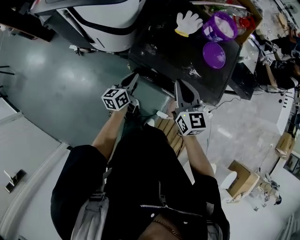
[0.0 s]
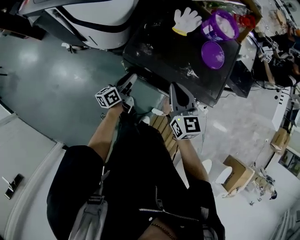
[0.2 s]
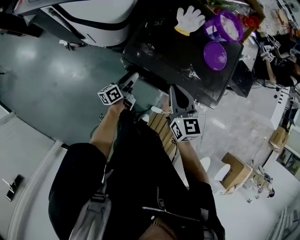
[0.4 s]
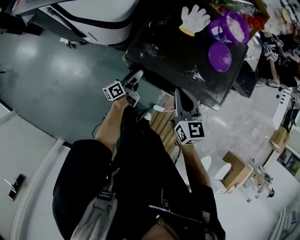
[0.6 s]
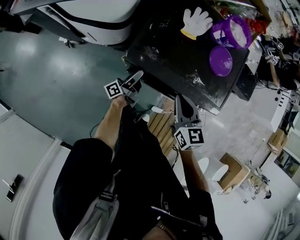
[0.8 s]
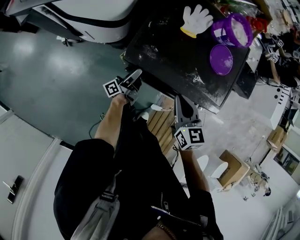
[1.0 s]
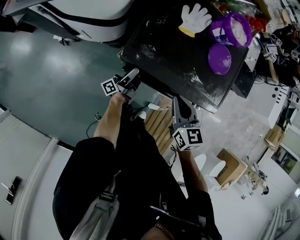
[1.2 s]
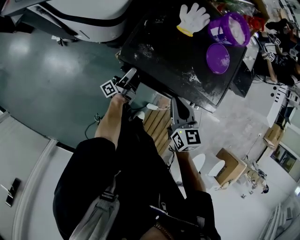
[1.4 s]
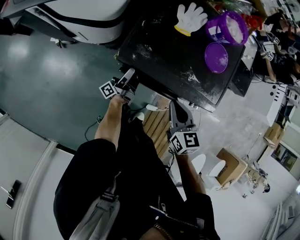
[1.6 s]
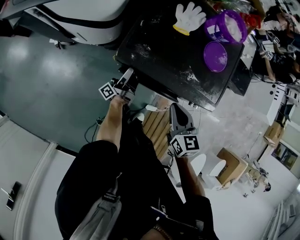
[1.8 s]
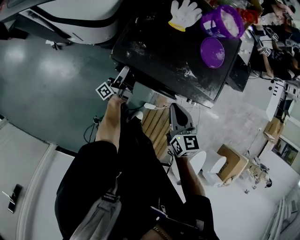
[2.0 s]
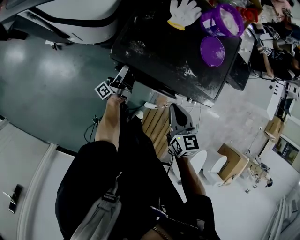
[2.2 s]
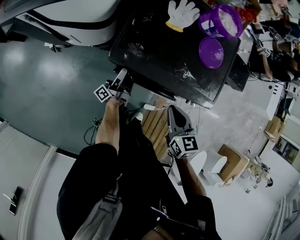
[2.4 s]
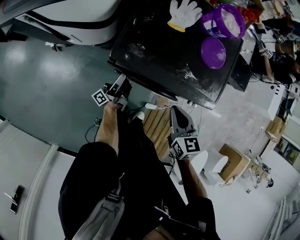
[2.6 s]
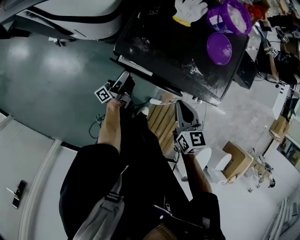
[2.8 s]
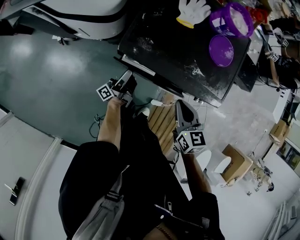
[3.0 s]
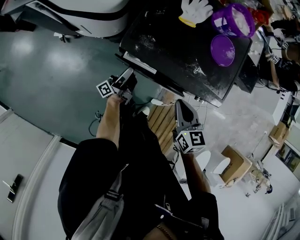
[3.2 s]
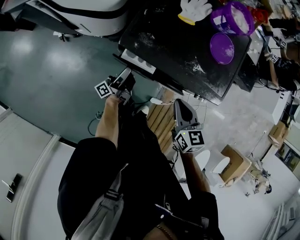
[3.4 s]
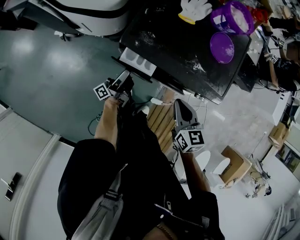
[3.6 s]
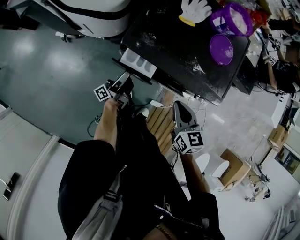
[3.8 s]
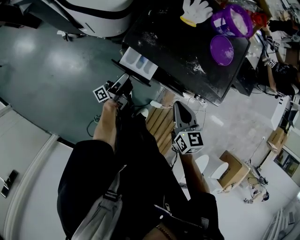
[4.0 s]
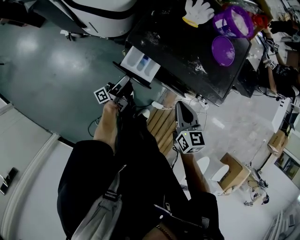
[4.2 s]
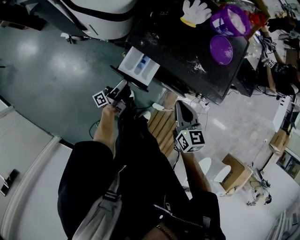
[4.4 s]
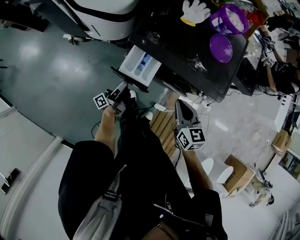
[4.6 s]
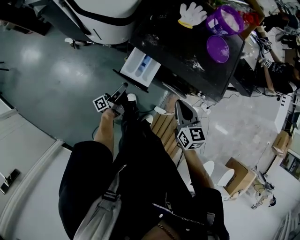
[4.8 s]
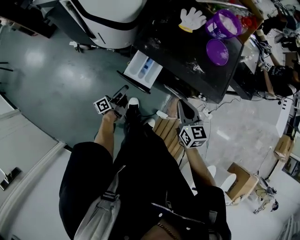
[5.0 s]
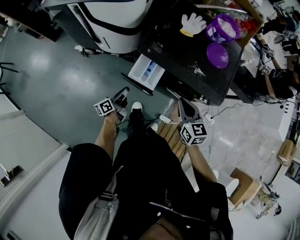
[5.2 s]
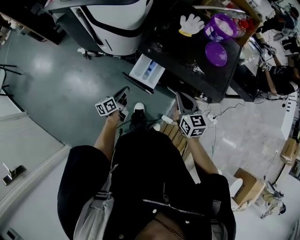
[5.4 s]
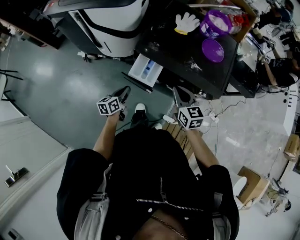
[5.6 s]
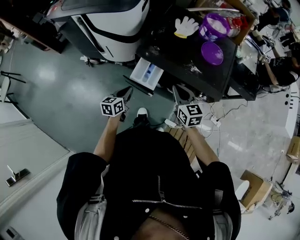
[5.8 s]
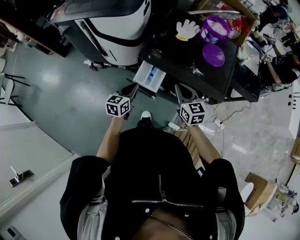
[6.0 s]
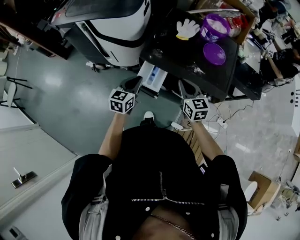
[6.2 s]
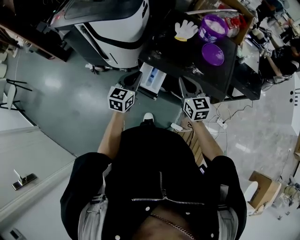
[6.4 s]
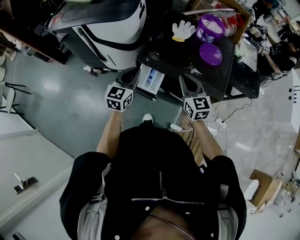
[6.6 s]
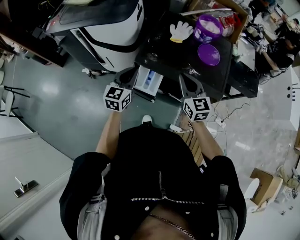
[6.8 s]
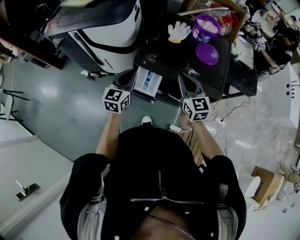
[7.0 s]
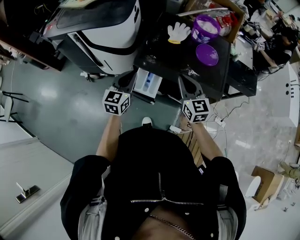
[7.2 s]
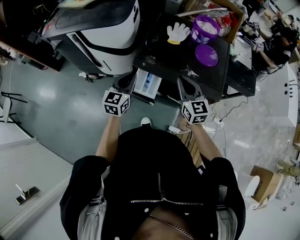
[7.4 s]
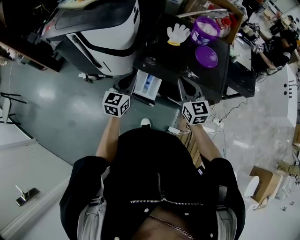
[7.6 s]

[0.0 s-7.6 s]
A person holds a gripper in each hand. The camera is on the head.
0.0 to 1.6 s: The right gripper is displaced downward by approximately 10 cm; the left gripper heads downward and forward, covering approximately 10 cm, tips its fingers upward by approximately 40 degrees, and opens.
1.6 to 3.0 s: The grippers move only a little.
3.0 to 4.6 s: The left gripper goes some 10 cm backward, while the right gripper is displaced backward by some 5 cm.
4.6 to 6.0 s: The right gripper goes roughly 5 cm forward. Meanwhile the left gripper is displaced upward by approximately 15 cm, rotates around the line of its fingers by roughly 60 degrees, clockwise from behind, and closes up.
6.0 to 7.6 s: The right gripper goes roughly 5 cm upward; the left gripper is displaced upward and forward by approximately 10 cm.

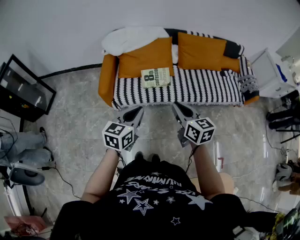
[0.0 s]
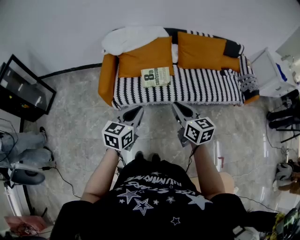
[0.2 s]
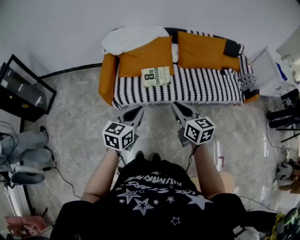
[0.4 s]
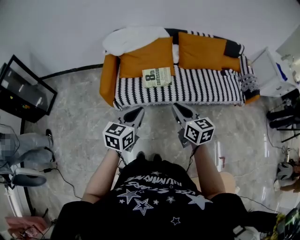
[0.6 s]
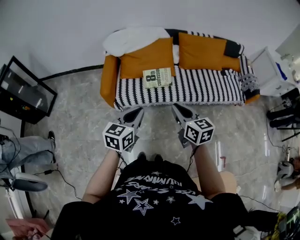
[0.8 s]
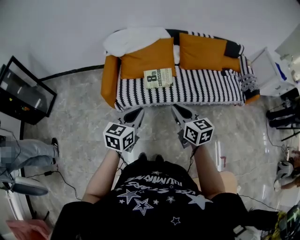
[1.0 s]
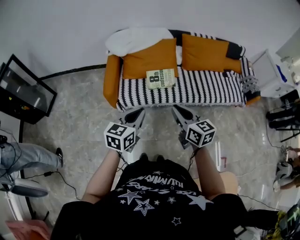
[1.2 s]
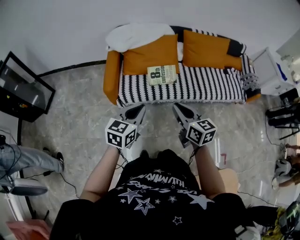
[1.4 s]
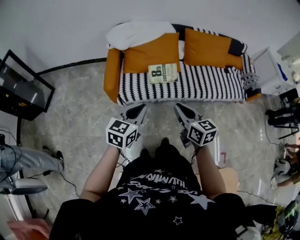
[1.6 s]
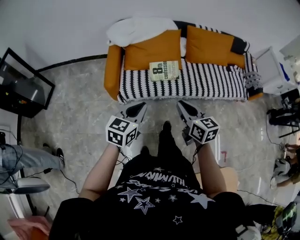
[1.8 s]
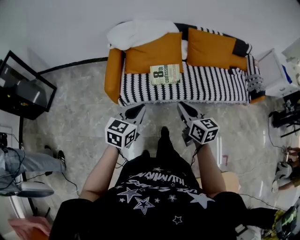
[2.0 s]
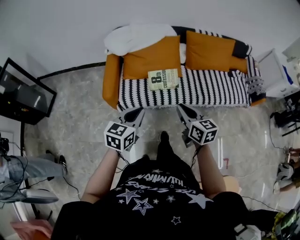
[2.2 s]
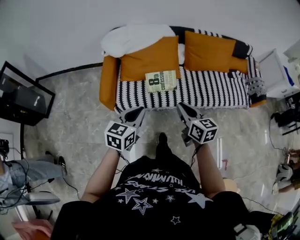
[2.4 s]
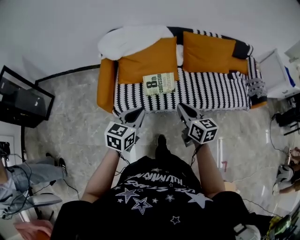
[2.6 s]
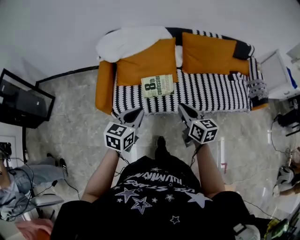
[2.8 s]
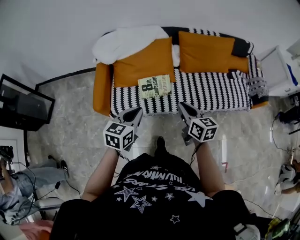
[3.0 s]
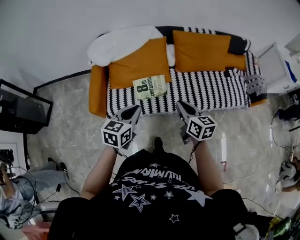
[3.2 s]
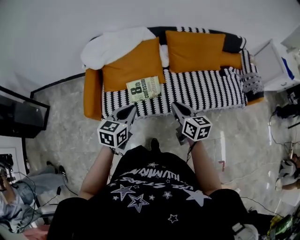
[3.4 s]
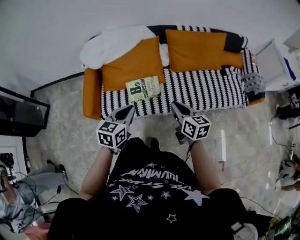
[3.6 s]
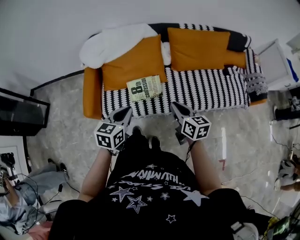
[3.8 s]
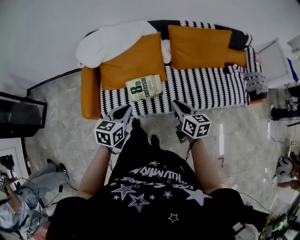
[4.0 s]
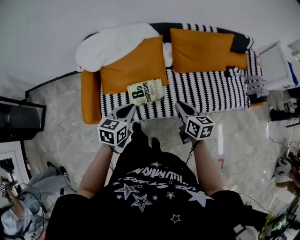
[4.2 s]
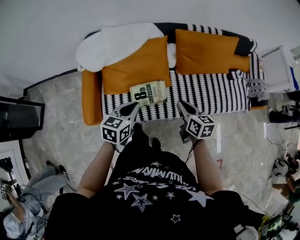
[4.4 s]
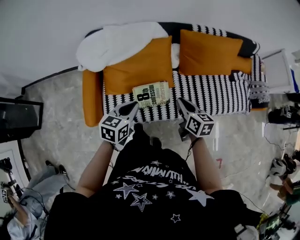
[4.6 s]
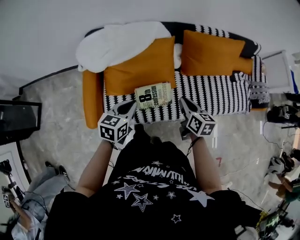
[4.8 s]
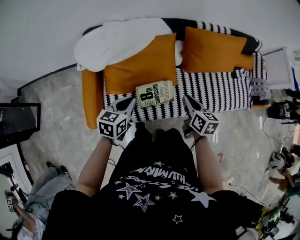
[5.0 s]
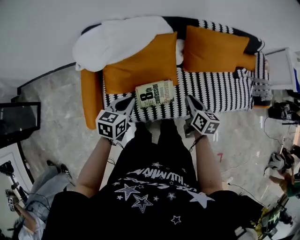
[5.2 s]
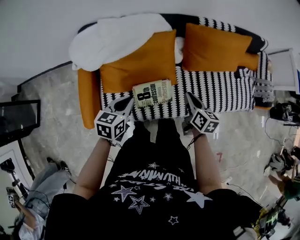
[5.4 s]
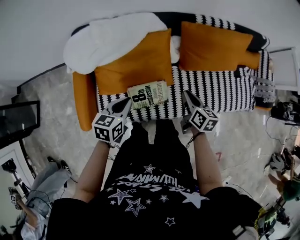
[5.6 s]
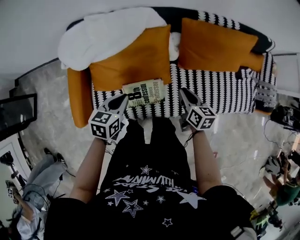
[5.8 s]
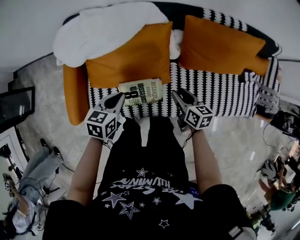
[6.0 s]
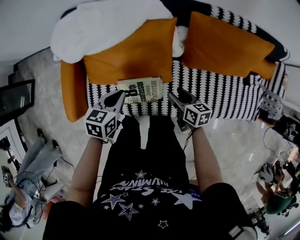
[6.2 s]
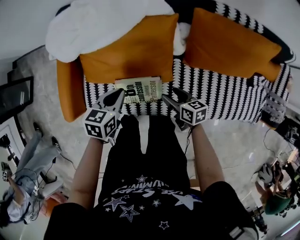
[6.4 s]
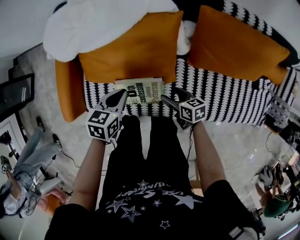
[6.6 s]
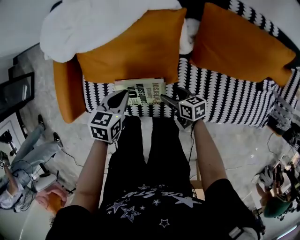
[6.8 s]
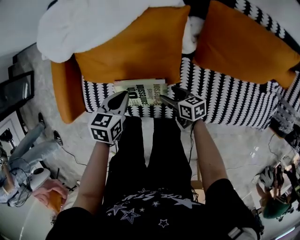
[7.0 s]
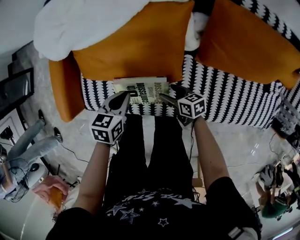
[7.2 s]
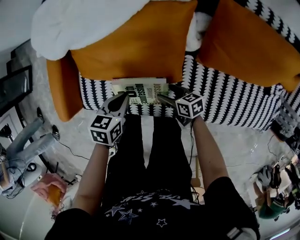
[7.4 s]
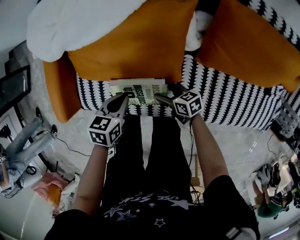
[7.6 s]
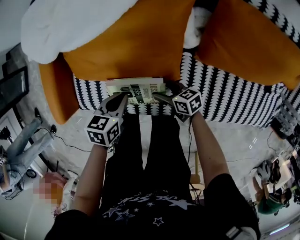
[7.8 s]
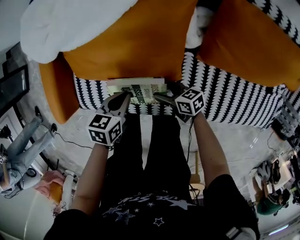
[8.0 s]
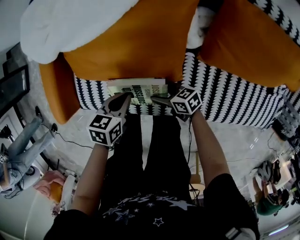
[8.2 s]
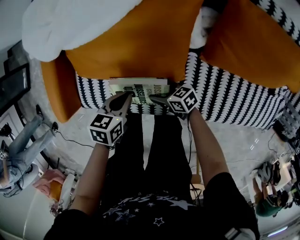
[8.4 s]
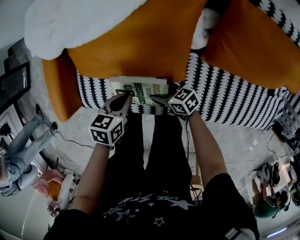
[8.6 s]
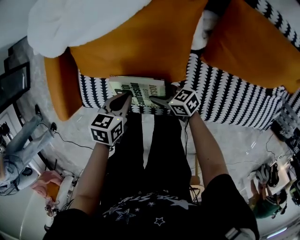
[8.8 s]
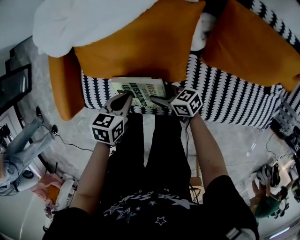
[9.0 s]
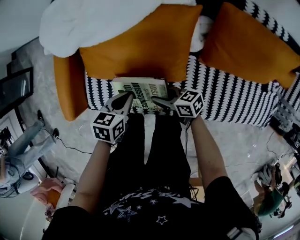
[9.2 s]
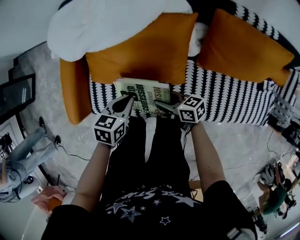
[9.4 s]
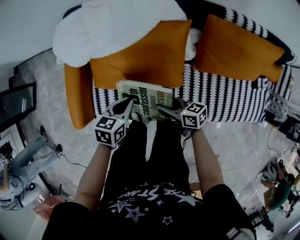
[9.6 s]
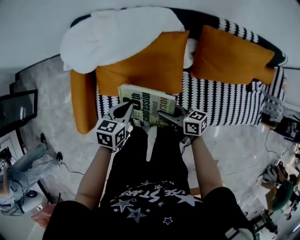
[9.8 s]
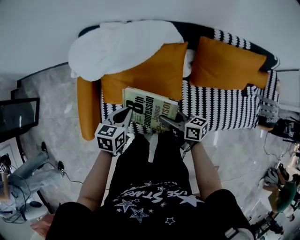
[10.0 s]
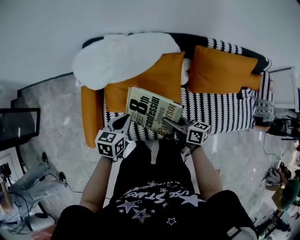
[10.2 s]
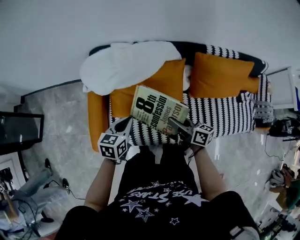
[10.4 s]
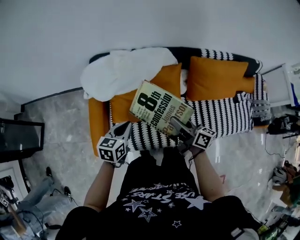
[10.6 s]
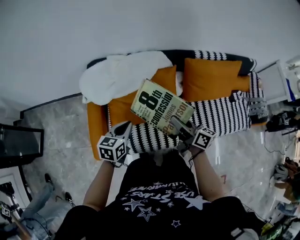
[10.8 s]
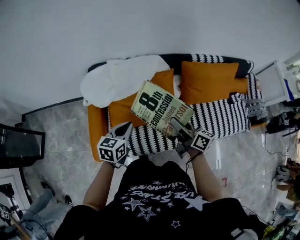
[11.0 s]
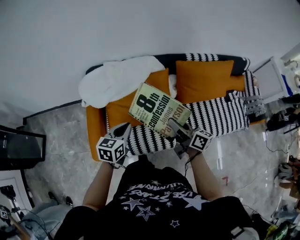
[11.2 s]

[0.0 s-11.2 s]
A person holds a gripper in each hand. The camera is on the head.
0.0 to 1.6 s: Both grippers move to the left, approximately 10 cm.
1.6 to 3.2 s: The grippers both shift forward and to the right by some 25 cm.
3.2 to 4.8 s: The right gripper shifts some 20 cm forward. Meanwhile the left gripper is displaced forward and to the left by approximately 20 cm.
4.8 to 6.4 s: The left gripper moves downward, roughly 15 cm. The right gripper shifts about 20 cm downward, changes its angle by about 30 degrees, and opens its fingers.
6.4 to 8.0 s: The left gripper moves downward, roughly 15 cm. The right gripper heads downward and to the left, covering some 15 cm, and turns by about 20 degrees.
8.0 to 9.6 s: The right gripper heads upward, covering some 15 cm, and closes up; the left gripper moves upward, approximately 10 cm.
9.6 to 11.2 s: The grippers both shift upward by roughly 20 cm. The left gripper changes its angle by roughly 20 degrees. The right gripper swivels approximately 40 degrees.

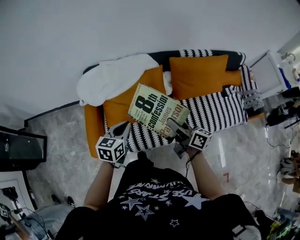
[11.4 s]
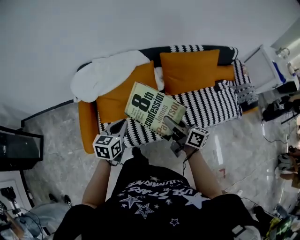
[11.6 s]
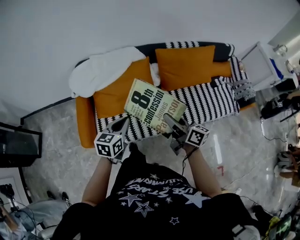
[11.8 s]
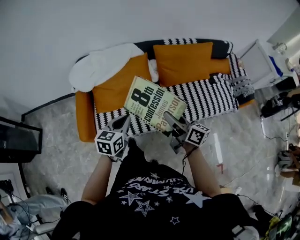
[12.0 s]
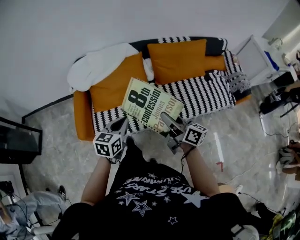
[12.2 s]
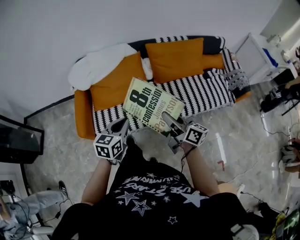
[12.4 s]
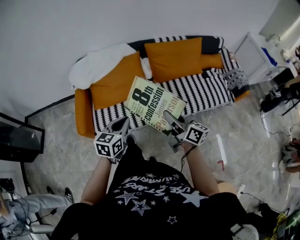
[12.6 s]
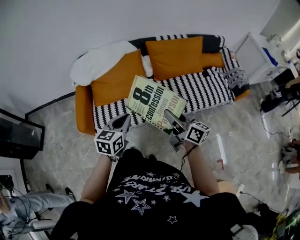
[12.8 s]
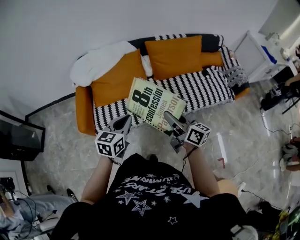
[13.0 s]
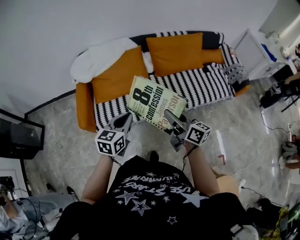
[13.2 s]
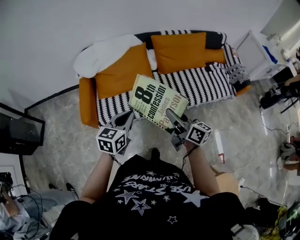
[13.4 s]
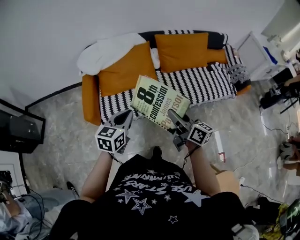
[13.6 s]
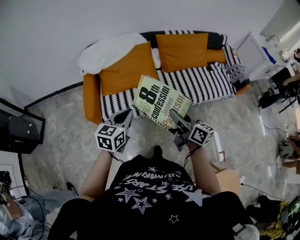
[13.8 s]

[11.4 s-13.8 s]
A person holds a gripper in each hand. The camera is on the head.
11.4 to 12.6 s: Both grippers travel together backward and to the right, approximately 20 cm.
12.6 to 13.8 s: The right gripper swings forward and backward, approximately 10 cm each way, with 2 reversals. The left gripper moves to the left and backward, approximately 10 cm.

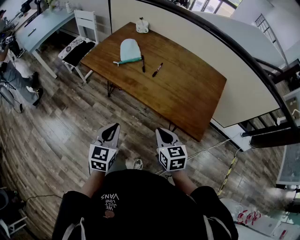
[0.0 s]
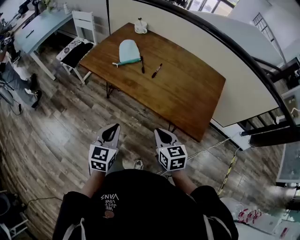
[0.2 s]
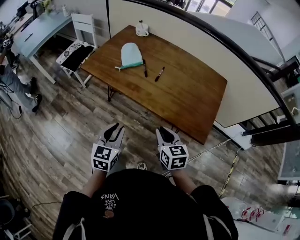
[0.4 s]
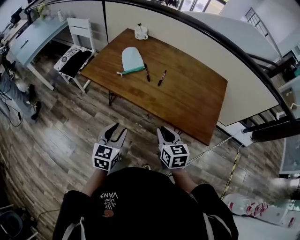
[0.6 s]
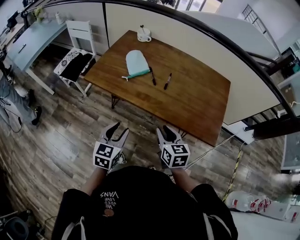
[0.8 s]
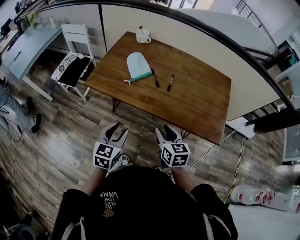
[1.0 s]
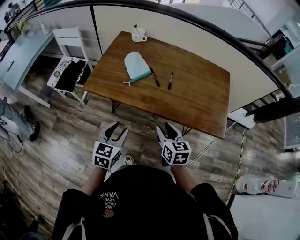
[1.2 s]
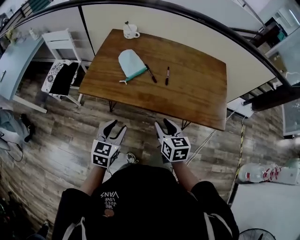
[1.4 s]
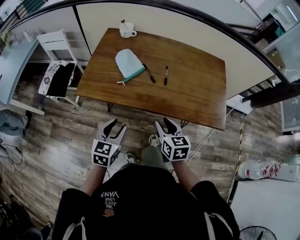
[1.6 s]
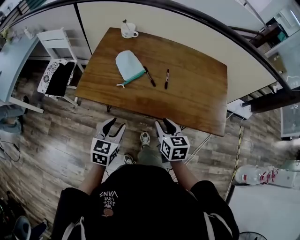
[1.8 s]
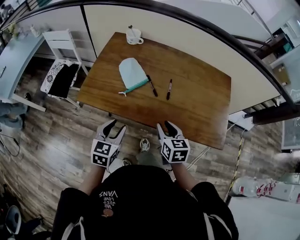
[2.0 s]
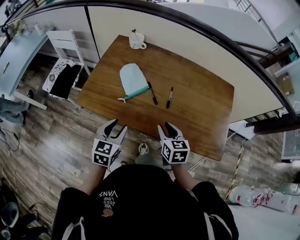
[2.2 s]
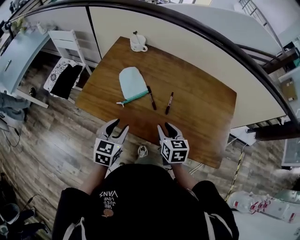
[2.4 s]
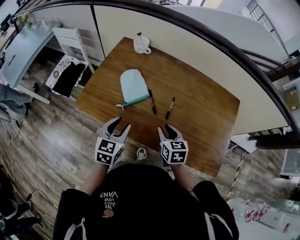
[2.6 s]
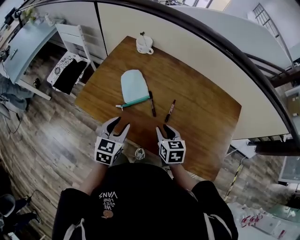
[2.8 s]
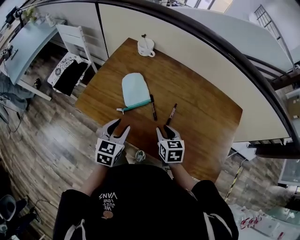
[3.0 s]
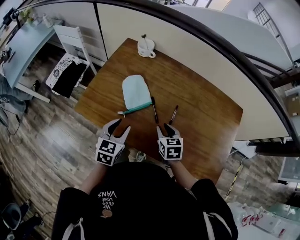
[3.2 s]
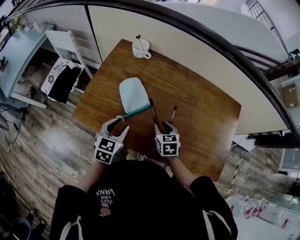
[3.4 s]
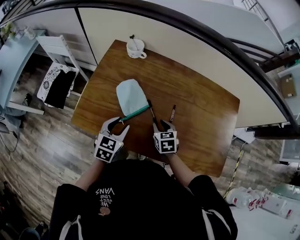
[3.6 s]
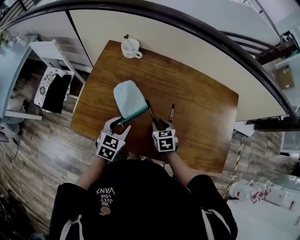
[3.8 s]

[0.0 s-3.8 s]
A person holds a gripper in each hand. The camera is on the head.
0.0 to 1.2 s: Both grippers travel together to the left and forward, about 20 cm. The left gripper changes its angle by roughly 20 degrees, and opens up; the right gripper changes its angle by about 20 degrees, and opens up.
1.2 to 2.6 s: Both grippers move forward, some 20 cm.
2.6 to 3.8 s: The grippers both shift forward and downward by about 10 cm.
